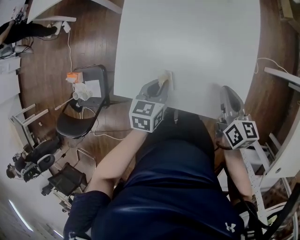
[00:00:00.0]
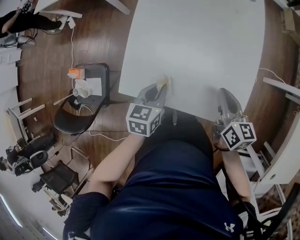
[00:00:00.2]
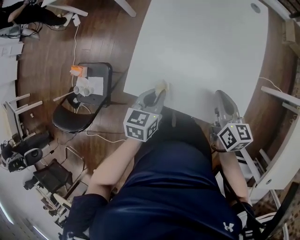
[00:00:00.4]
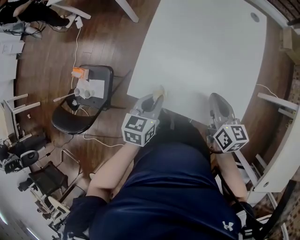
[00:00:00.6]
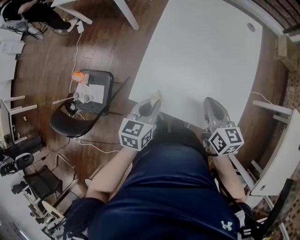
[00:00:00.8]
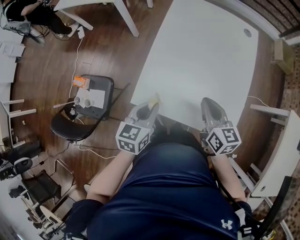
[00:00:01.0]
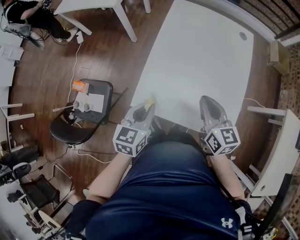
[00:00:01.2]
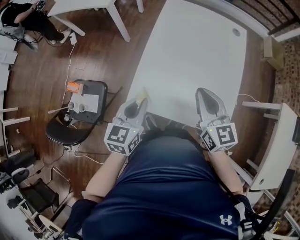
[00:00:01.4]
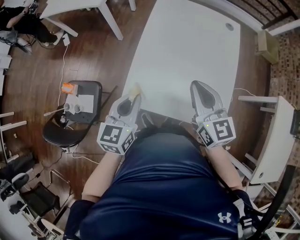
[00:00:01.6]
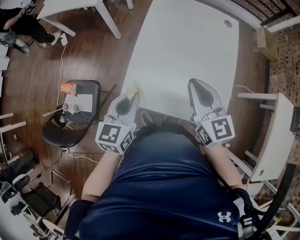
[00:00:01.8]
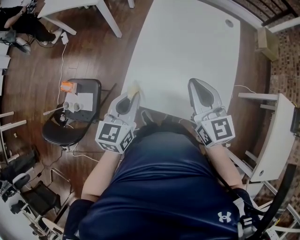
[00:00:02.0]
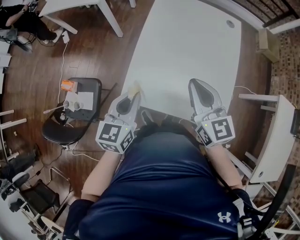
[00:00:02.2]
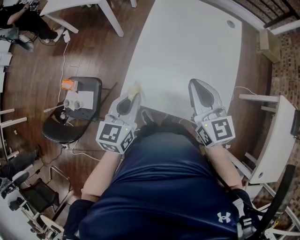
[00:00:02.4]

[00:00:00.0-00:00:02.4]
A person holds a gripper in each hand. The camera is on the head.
00:00:00.0 to 00:00:01.2: The left gripper shifts approximately 20 cm upward and to the left. The right gripper goes about 20 cm to the left and upward, and changes its angle by some 20 degrees.
00:00:01.2 to 00:00:02.4: The right gripper moves upward, approximately 5 cm.

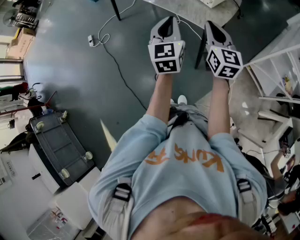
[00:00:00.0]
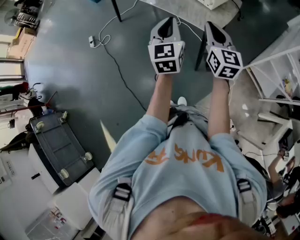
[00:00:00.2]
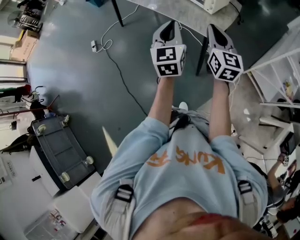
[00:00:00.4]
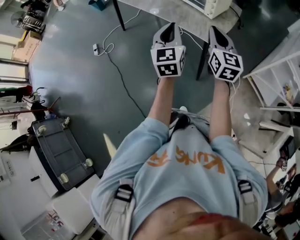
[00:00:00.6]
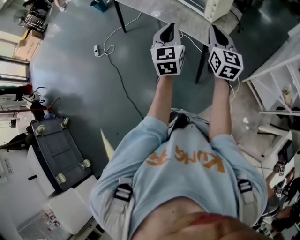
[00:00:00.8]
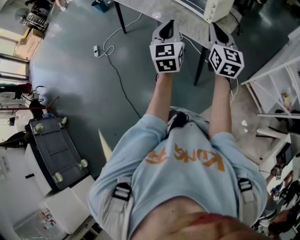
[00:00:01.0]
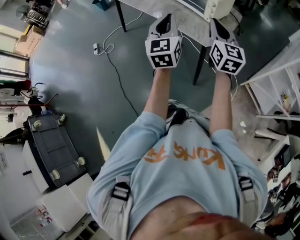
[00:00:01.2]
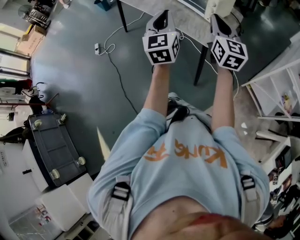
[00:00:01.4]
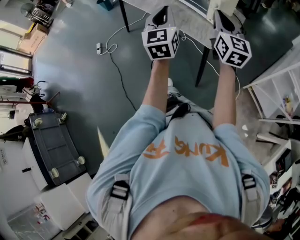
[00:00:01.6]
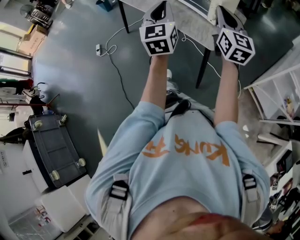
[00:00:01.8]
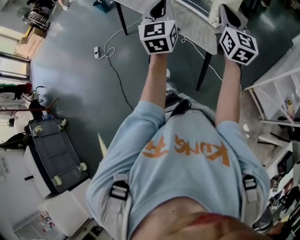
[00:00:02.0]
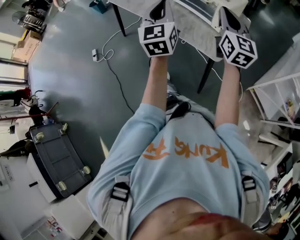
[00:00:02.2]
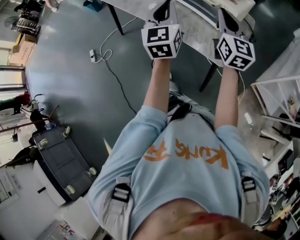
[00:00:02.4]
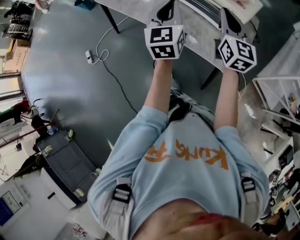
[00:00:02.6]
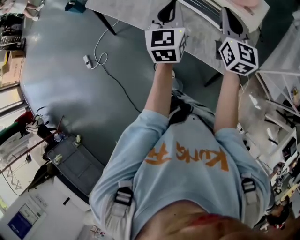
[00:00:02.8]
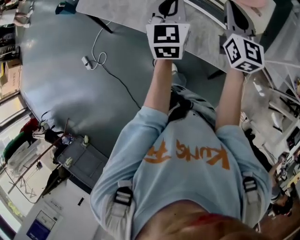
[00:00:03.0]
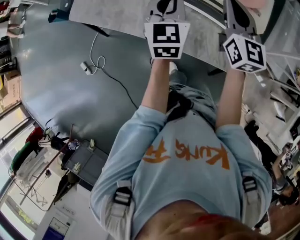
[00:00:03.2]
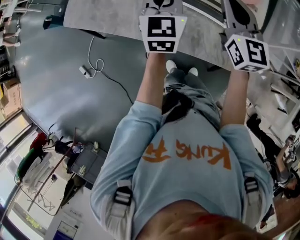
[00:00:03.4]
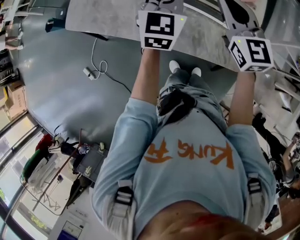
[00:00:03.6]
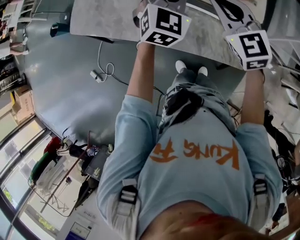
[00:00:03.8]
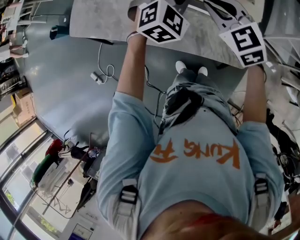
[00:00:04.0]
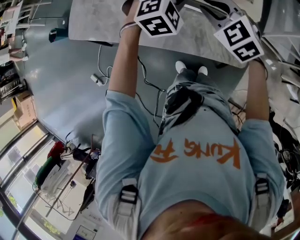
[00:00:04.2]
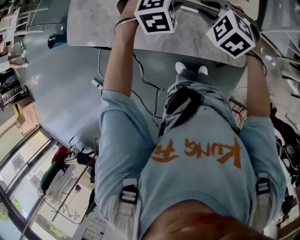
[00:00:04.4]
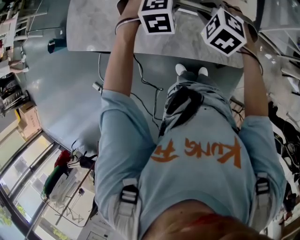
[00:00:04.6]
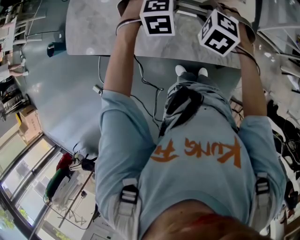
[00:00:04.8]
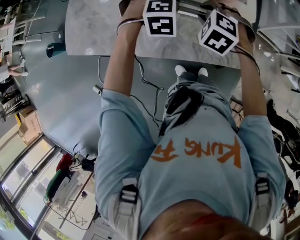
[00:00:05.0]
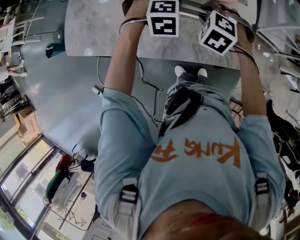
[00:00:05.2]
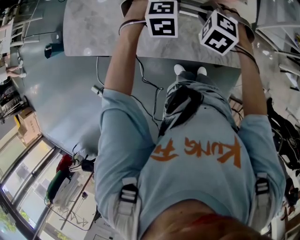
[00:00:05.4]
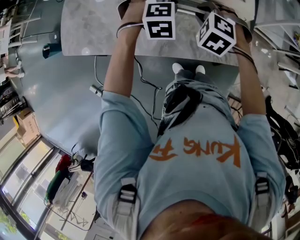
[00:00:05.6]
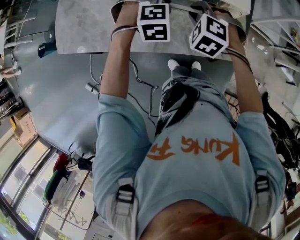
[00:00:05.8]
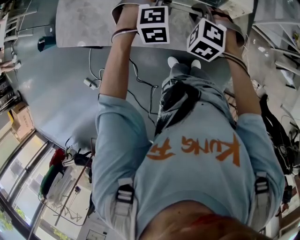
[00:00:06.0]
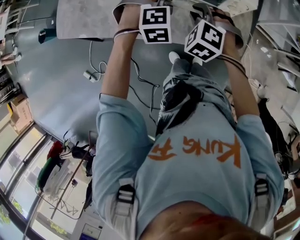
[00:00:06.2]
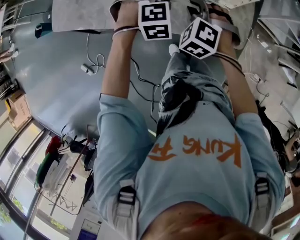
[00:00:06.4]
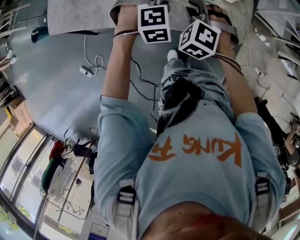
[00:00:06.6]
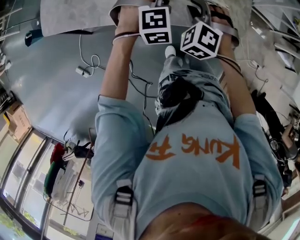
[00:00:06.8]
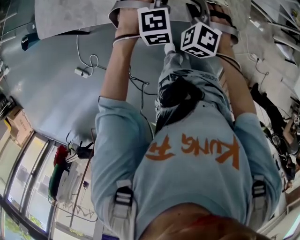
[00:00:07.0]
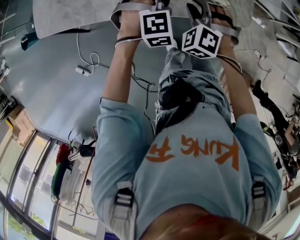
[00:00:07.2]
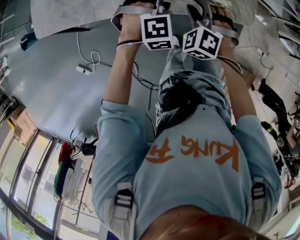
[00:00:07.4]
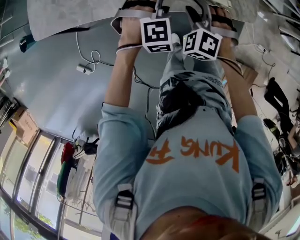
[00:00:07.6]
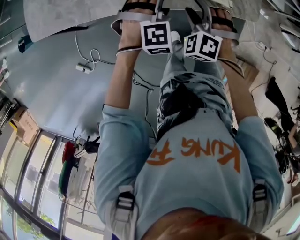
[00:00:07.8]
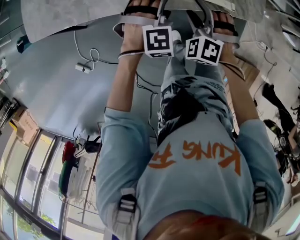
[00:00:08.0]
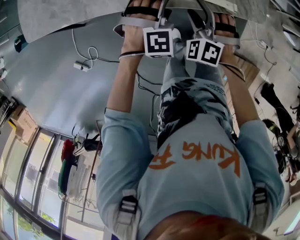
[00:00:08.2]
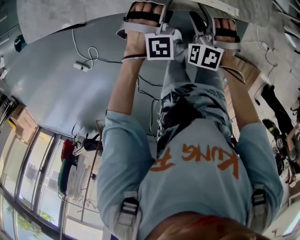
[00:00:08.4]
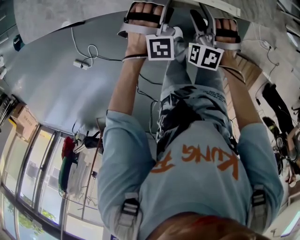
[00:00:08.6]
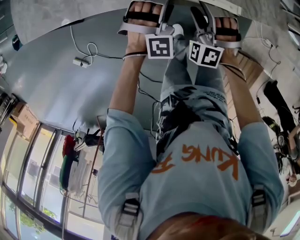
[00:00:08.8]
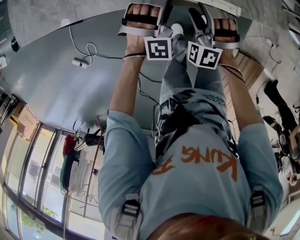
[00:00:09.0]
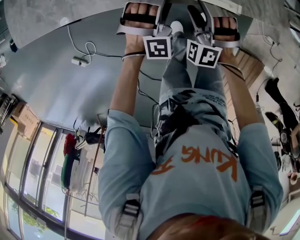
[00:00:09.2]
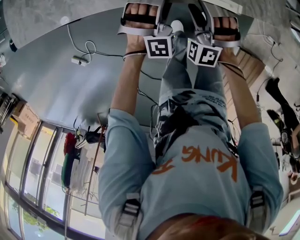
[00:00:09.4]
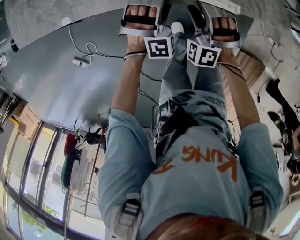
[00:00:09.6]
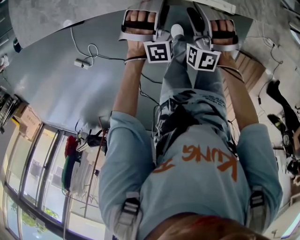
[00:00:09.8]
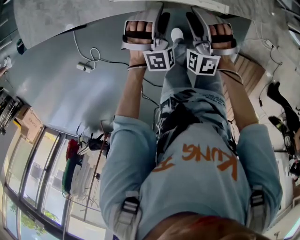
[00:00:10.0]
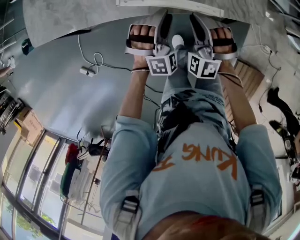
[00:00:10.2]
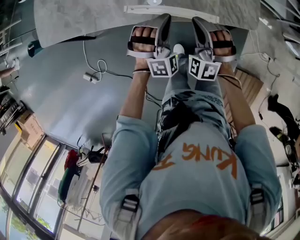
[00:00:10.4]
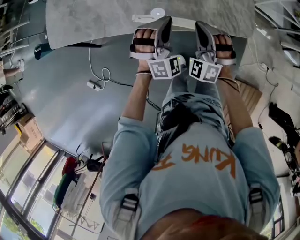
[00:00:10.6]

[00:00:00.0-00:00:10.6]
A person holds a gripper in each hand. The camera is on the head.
00:00:00.0 to 00:00:01.6: The left gripper goes approximately 5 cm upward; the right gripper goes approximately 10 cm upward, to the right and forward.
00:00:01.6 to 00:00:03.0: The two grippers travel together, forward, about 50 cm. The left gripper changes its angle by roughly 20 degrees.
00:00:03.0 to 00:00:04.6: The right gripper heads downward, covering approximately 10 cm, and tilts its fingers approximately 50 degrees downward, while the left gripper goes roughly 15 cm downward, to the right and forward, and tilts its fingers roughly 50 degrees downward.
00:00:04.6 to 00:00:06.0: The left gripper ends up some 5 cm from where it was. Meanwhile the right gripper travels downward by approximately 5 cm.
00:00:06.0 to 00:00:07.6: Both grippers travel together downward and backward, approximately 20 cm. The right gripper opens its fingers; the left gripper opens its fingers.
00:00:07.6 to 00:00:09.0: Both grippers travel together downward, some 10 cm. The left gripper changes its angle by roughly 20 degrees.
00:00:09.0 to 00:00:10.6: Both grippers move upward, about 15 cm. The left gripper rotates approximately 30 degrees, and closes up. The right gripper closes its fingers.

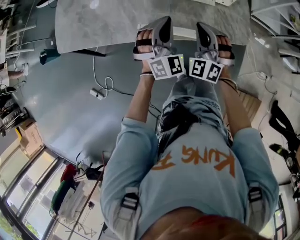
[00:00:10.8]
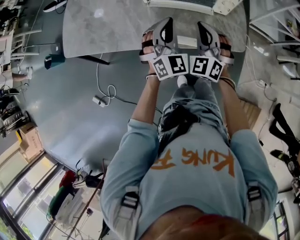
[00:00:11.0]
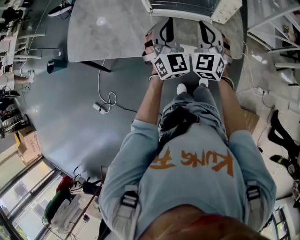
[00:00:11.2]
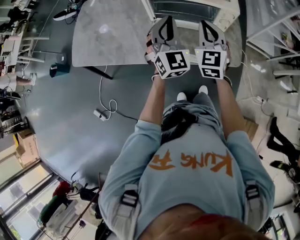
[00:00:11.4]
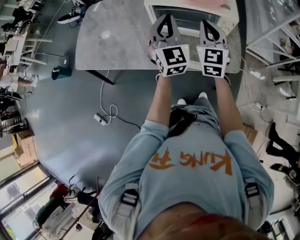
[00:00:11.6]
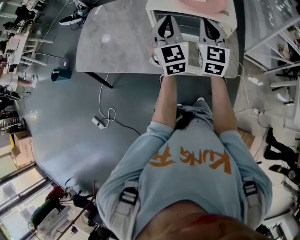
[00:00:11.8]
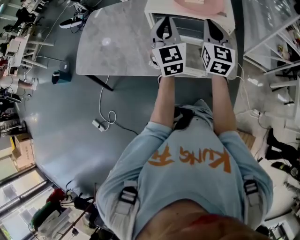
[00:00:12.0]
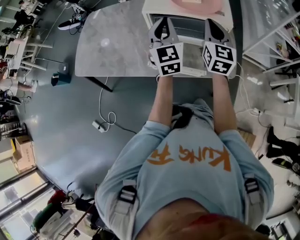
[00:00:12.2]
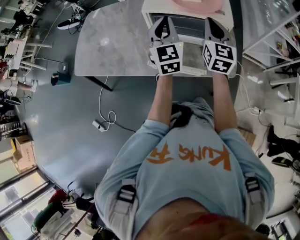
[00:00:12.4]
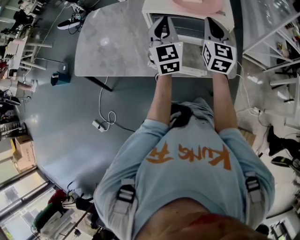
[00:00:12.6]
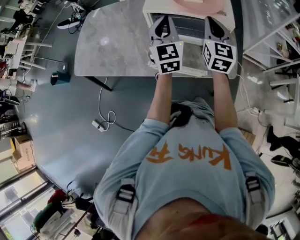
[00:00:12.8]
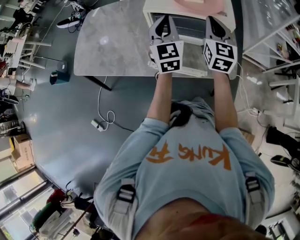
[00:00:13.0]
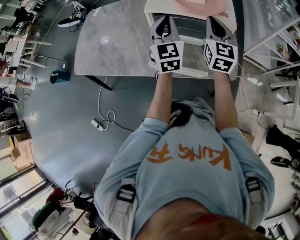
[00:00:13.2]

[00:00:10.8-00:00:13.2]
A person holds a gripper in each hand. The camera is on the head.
00:00:10.8 to 00:00:12.0: The right gripper goes roughly 25 cm upward and forward, and rotates around the line of its fingers by some 50 degrees, clockwise from behind, while the left gripper shifts approximately 20 cm upward, and twists roughly 50 degrees counterclockwise, seen from behind.
00:00:12.0 to 00:00:13.2: The grippers make only small movements.

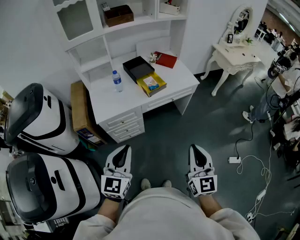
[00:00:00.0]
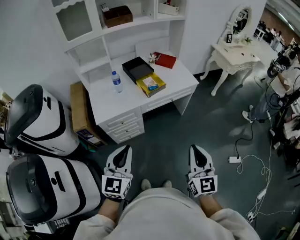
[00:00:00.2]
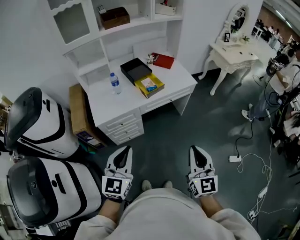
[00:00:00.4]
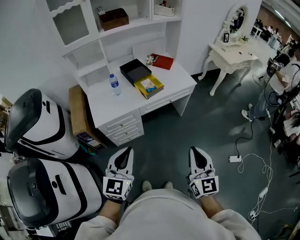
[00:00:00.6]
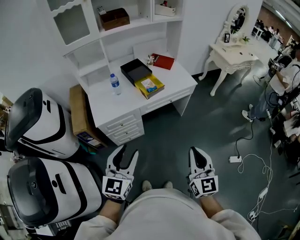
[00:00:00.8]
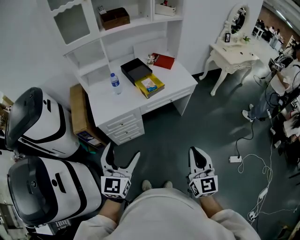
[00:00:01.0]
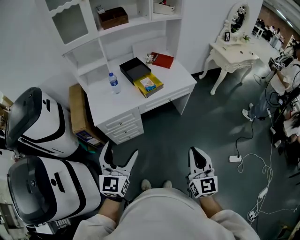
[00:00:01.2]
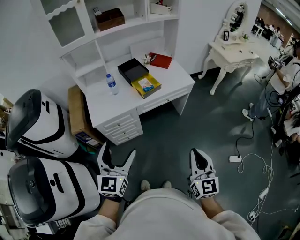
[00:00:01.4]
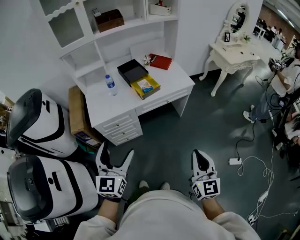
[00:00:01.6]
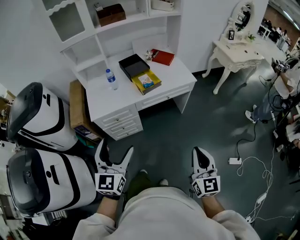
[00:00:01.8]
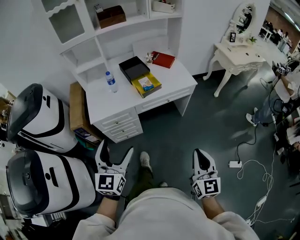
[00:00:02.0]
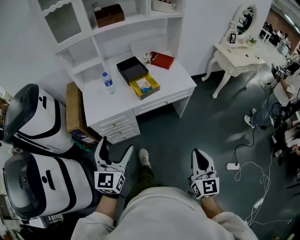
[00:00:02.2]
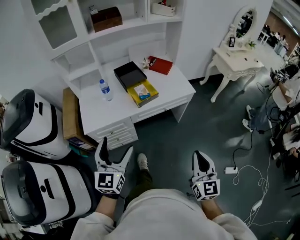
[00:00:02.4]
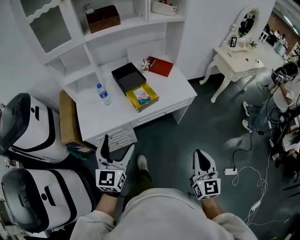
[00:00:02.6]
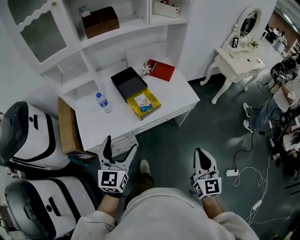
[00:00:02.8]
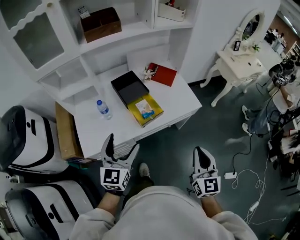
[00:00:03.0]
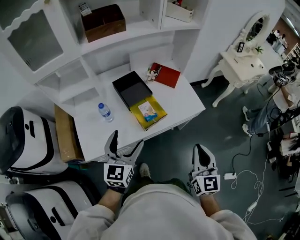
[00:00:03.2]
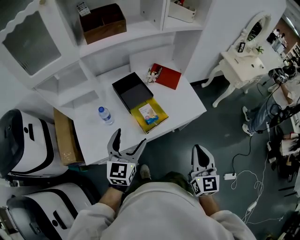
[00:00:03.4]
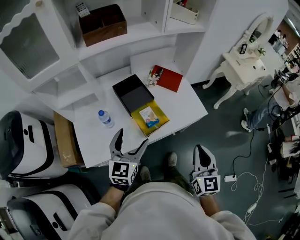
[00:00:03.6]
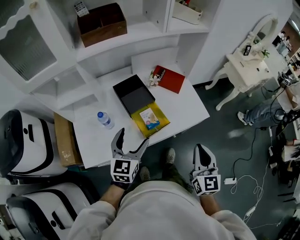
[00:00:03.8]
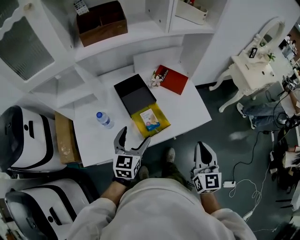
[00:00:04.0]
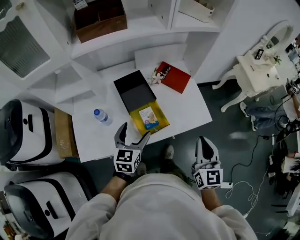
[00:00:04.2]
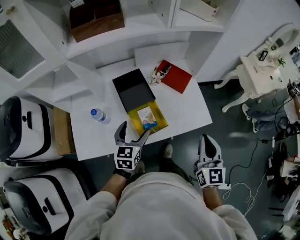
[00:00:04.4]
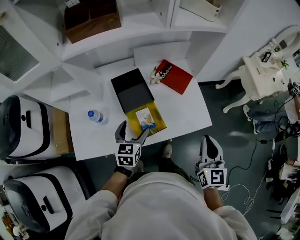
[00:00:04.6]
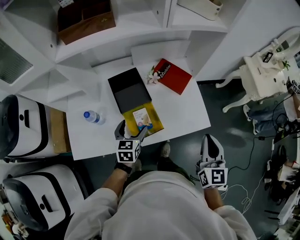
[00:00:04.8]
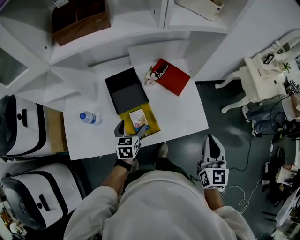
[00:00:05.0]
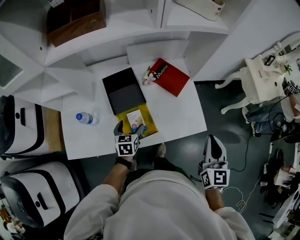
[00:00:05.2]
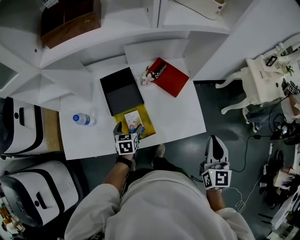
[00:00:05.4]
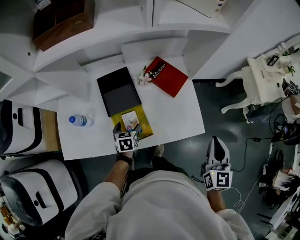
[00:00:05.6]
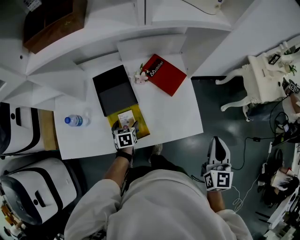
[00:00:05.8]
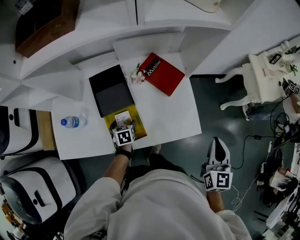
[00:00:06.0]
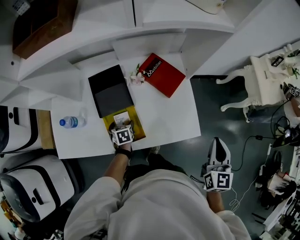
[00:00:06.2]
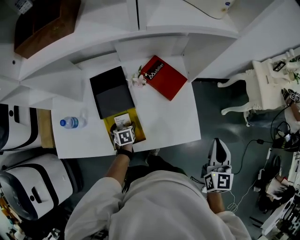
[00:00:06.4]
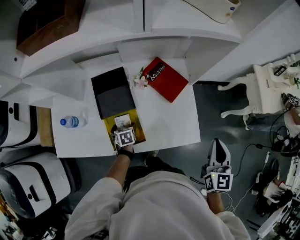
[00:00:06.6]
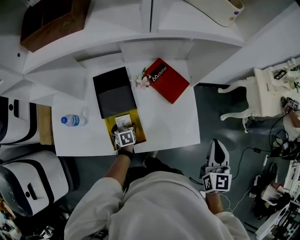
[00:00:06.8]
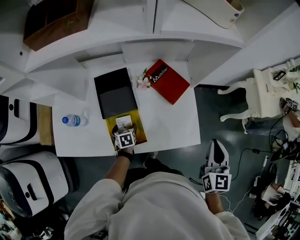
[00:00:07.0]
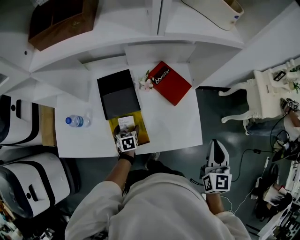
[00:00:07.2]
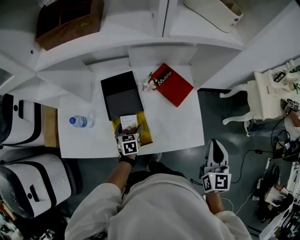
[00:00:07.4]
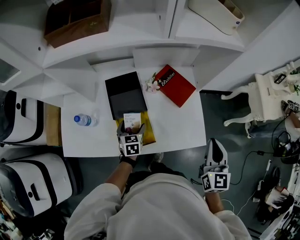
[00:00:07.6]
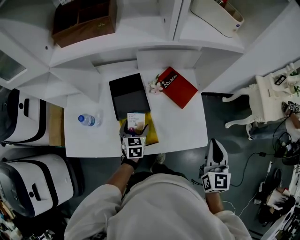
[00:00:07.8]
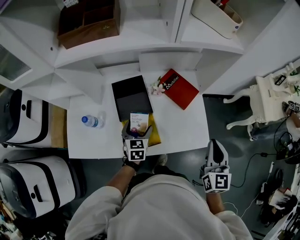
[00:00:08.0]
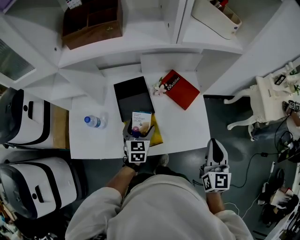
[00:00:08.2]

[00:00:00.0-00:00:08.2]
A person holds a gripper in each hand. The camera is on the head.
00:00:00.0 to 00:00:01.6: The right gripper heads to the right, covering roughly 10 cm. The left gripper opens its fingers.
00:00:01.6 to 00:00:03.2: Both grippers travel together forward, some 35 cm.
00:00:03.2 to 00:00:05.0: The left gripper heads forward and downward, covering some 30 cm, and swivels approximately 30 degrees; the right gripper moves forward and to the right, about 30 cm.
00:00:05.0 to 00:00:06.6: The left gripper travels downward by roughly 20 cm, and swivels approximately 30 degrees; the right gripper heads to the right and forward, covering some 15 cm.
00:00:06.6 to 00:00:08.2: The left gripper shifts some 20 cm upward, and points its fingers approximately 30 degrees further upward, while the right gripper moves to the left, about 10 cm.
